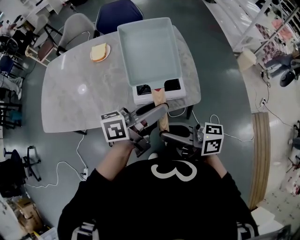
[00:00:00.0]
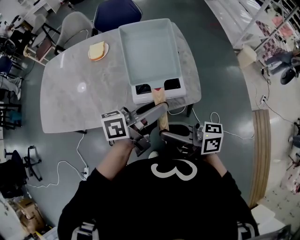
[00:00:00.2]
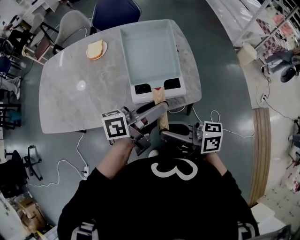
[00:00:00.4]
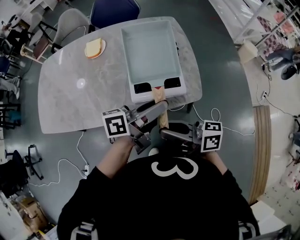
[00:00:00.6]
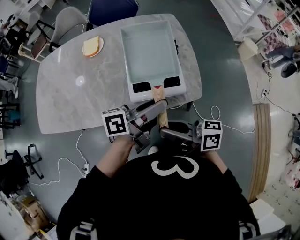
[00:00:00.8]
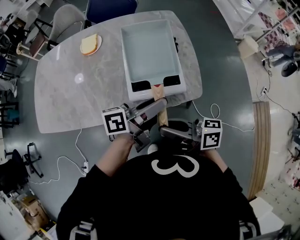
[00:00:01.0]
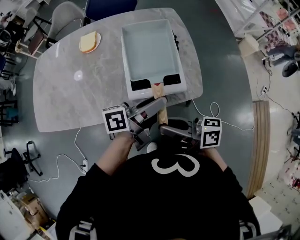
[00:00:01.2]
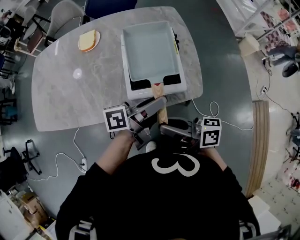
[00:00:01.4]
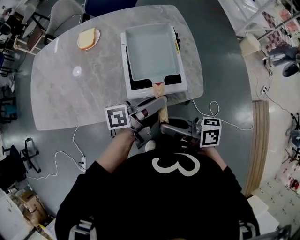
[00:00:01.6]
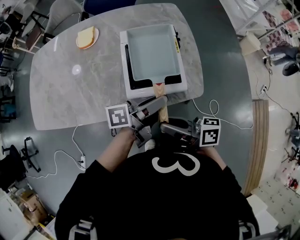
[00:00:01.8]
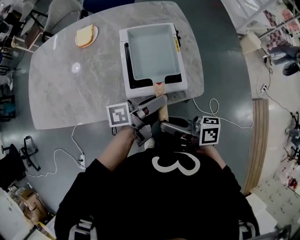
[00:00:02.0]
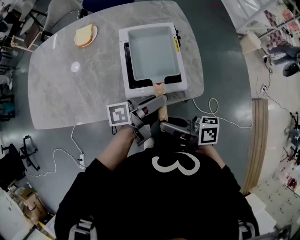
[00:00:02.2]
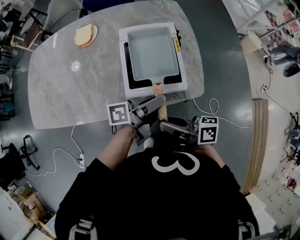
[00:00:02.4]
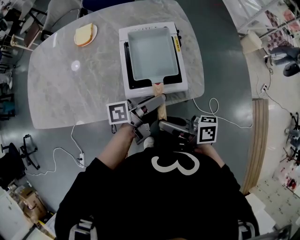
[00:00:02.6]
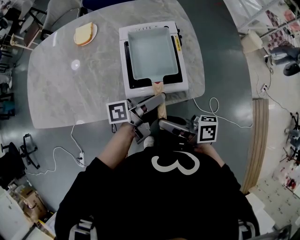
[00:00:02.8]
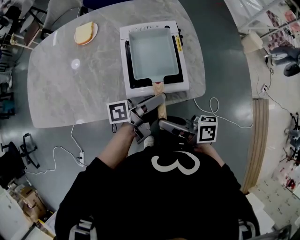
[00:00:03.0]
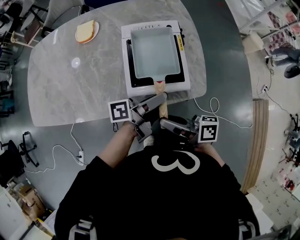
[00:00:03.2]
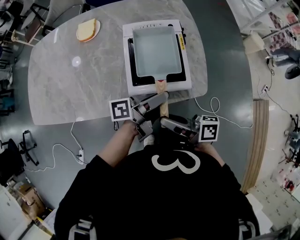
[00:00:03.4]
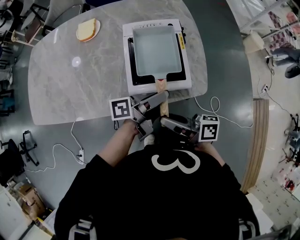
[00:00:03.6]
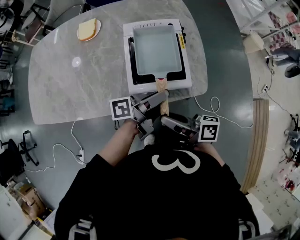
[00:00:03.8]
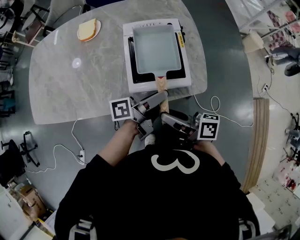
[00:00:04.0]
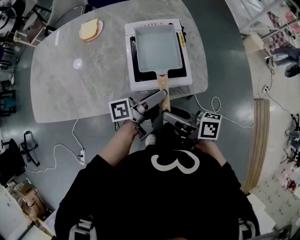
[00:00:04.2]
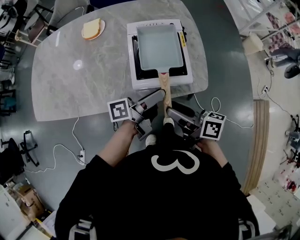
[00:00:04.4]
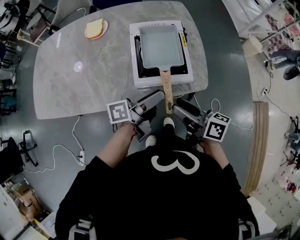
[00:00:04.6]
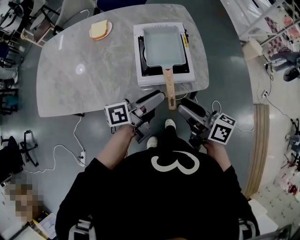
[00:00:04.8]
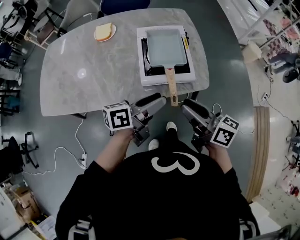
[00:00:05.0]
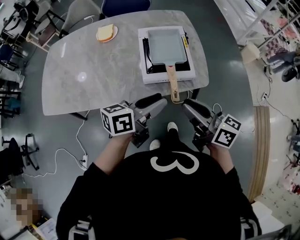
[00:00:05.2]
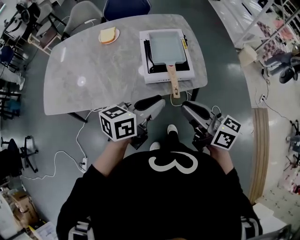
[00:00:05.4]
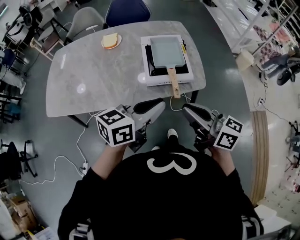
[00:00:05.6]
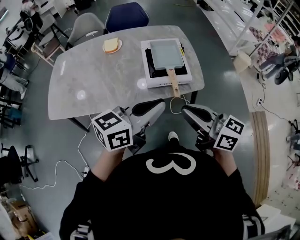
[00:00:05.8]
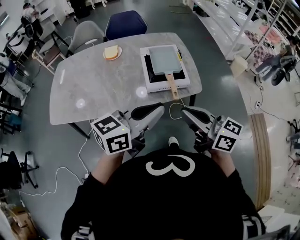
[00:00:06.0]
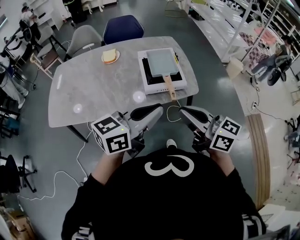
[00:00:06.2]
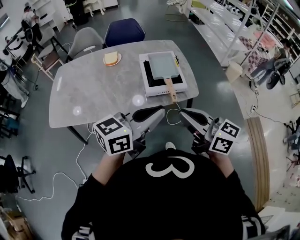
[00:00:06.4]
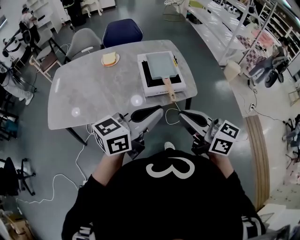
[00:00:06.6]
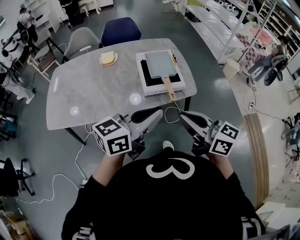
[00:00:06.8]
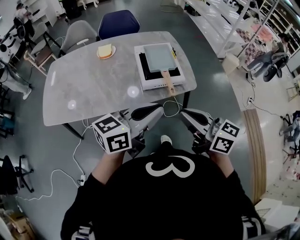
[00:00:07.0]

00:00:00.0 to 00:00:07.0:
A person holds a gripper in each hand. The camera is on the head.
00:00:00.0 to 00:00:01.4: Both grippers move downward, about 10 cm.
00:00:01.4 to 00:00:02.8: The left gripper goes some 5 cm downward.
00:00:02.8 to 00:00:04.2: The grippers stay close to where they were, moving slightly.
00:00:04.2 to 00:00:05.6: The left gripper moves backward, upward and to the left, roughly 20 cm, twists about 50 degrees clockwise, seen from behind, and closes up; the right gripper is displaced upward and backward by about 20 cm, changes its angle by approximately 30 degrees, and closes up.
00:00:05.6 to 00:00:07.0: Both grippers travel together backward, some 5 cm.

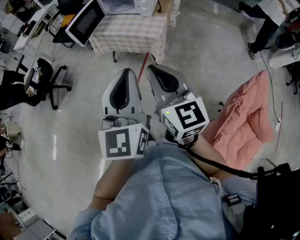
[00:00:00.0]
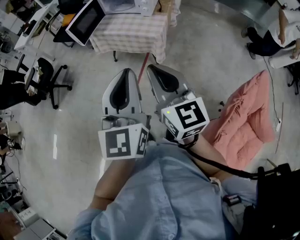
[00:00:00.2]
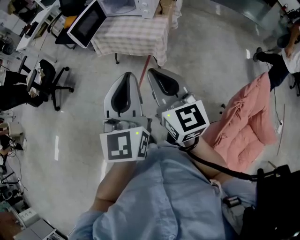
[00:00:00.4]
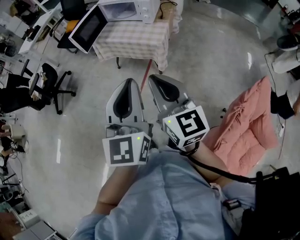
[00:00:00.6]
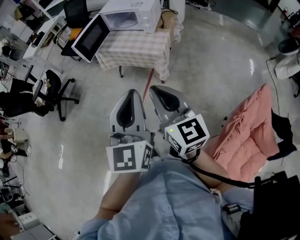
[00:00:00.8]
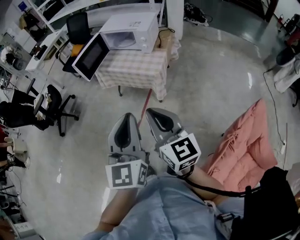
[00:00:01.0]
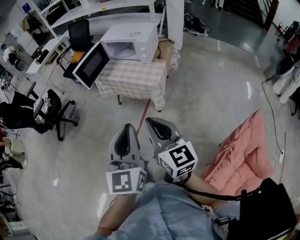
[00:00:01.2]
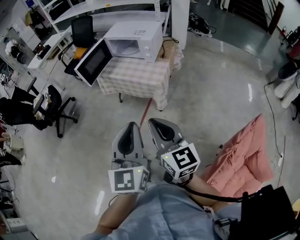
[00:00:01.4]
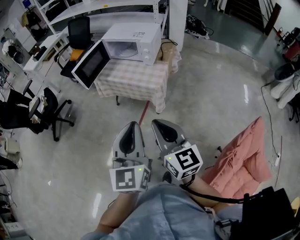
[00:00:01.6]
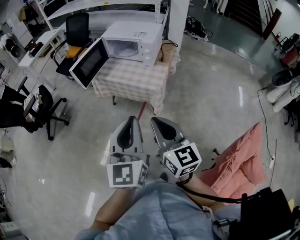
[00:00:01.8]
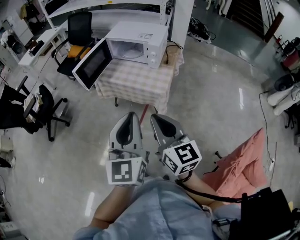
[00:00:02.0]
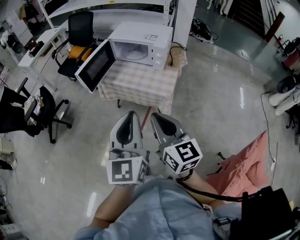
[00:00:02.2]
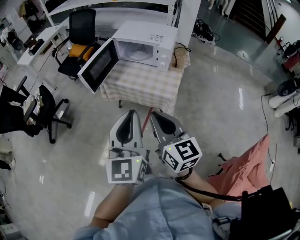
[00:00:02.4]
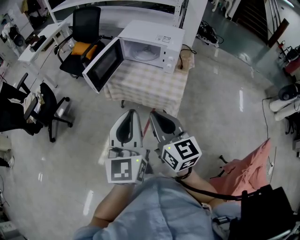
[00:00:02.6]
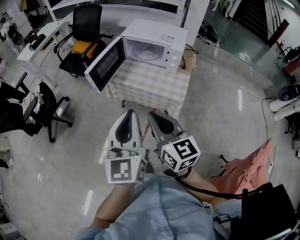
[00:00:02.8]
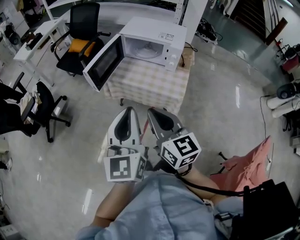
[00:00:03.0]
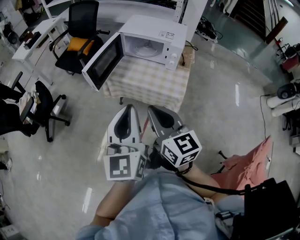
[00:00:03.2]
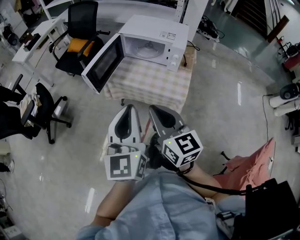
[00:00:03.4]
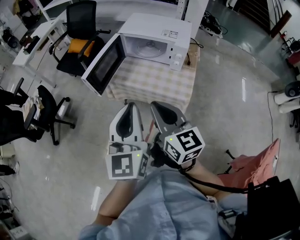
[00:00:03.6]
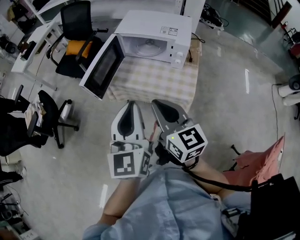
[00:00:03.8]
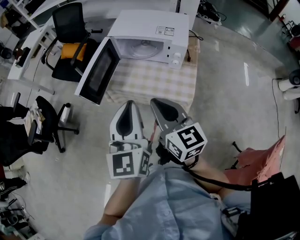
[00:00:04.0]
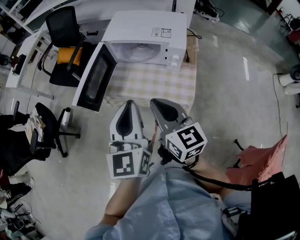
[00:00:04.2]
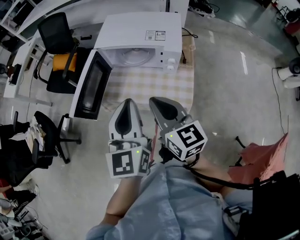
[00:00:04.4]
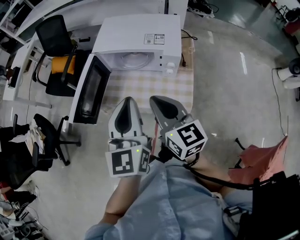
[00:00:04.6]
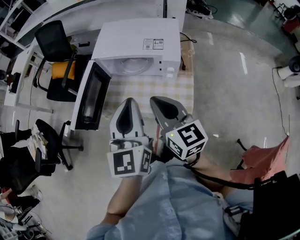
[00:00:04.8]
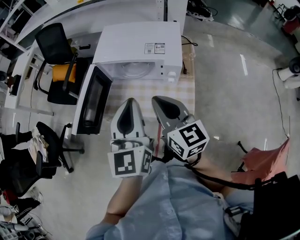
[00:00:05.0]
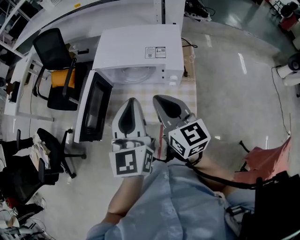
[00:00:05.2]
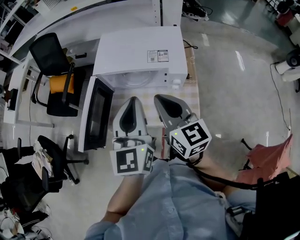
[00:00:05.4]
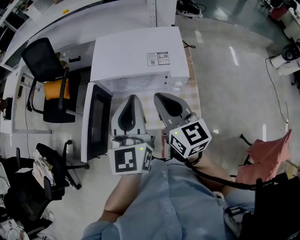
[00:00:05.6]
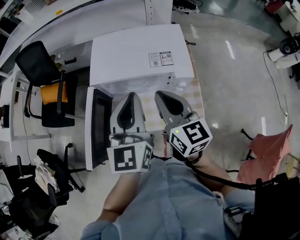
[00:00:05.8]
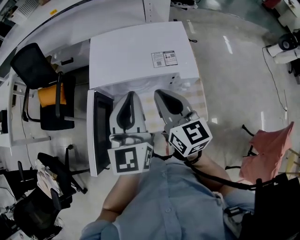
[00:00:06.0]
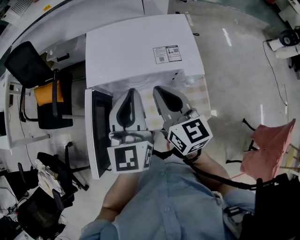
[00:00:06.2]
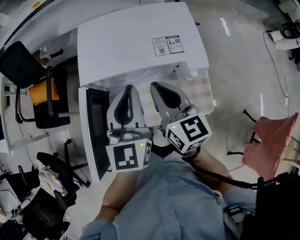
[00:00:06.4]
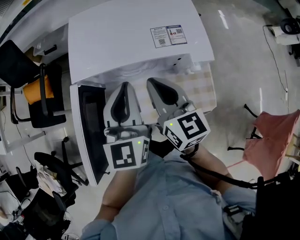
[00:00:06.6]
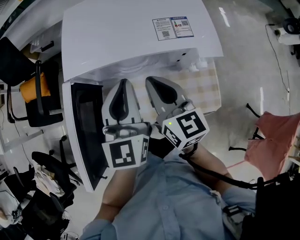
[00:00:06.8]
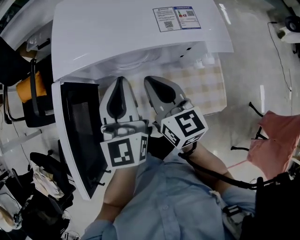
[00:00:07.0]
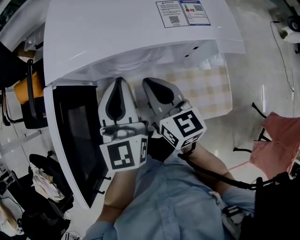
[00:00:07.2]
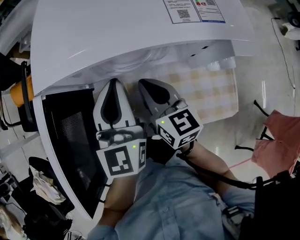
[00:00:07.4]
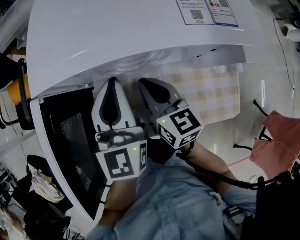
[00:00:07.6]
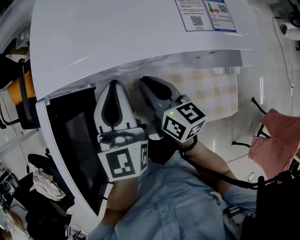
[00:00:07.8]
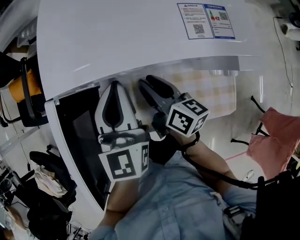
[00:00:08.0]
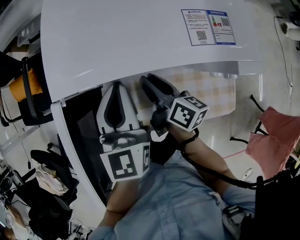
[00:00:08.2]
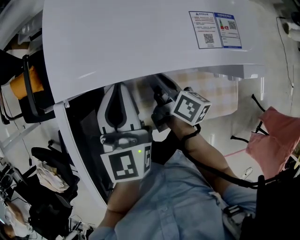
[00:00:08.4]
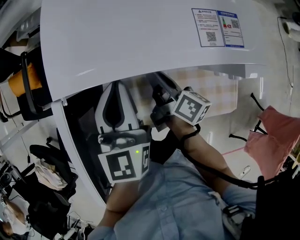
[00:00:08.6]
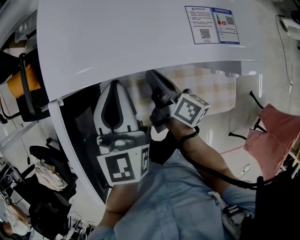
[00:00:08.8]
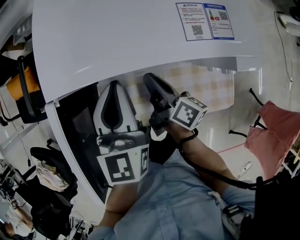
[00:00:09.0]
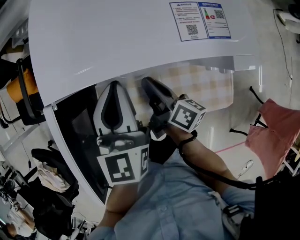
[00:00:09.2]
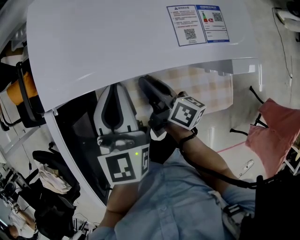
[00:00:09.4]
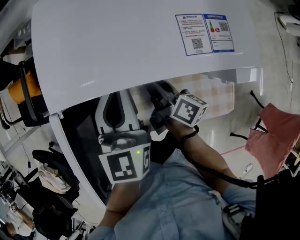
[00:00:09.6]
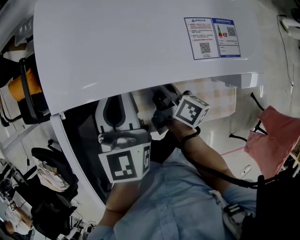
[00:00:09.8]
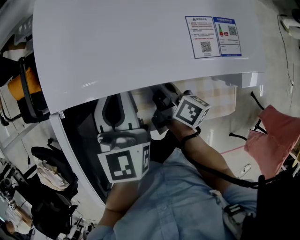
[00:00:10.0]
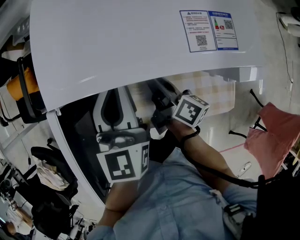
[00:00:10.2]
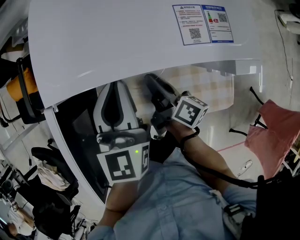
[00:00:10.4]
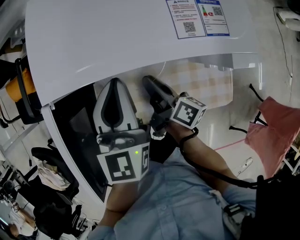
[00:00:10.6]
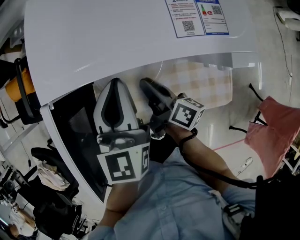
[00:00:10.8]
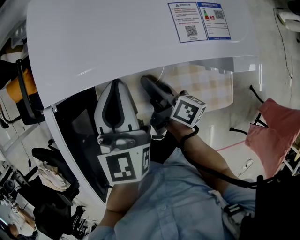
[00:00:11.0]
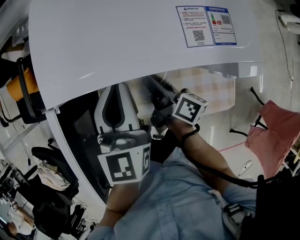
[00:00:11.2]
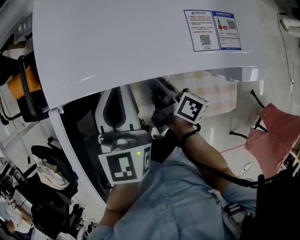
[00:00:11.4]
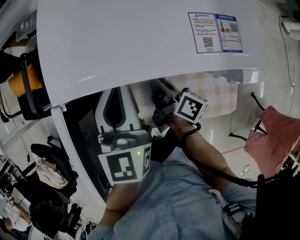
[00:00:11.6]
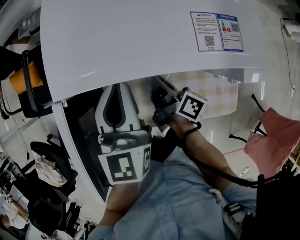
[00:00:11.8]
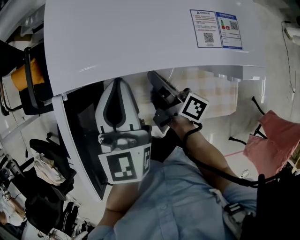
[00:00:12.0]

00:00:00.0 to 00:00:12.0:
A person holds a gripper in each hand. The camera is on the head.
00:00:00.0 to 00:00:01.6: The right gripper shifts by some 5 cm; the left gripper is displaced forward by roughly 5 cm.
00:00:01.6 to 00:00:03.0: The grippers both shift forward and to the left by about 25 cm.
00:00:03.0 to 00:00:04.4: The two grippers go roughly 20 cm forward.
00:00:04.4 to 00:00:06.0: The grippers both shift forward by some 20 cm.
00:00:06.0 to 00:00:07.6: Both grippers move downward, approximately 25 cm.
00:00:07.6 to 00:00:09.0: The right gripper rolls clockwise, seen from behind, by roughly 40 degrees.
00:00:09.0 to 00:00:12.0: The grippers move only a little.

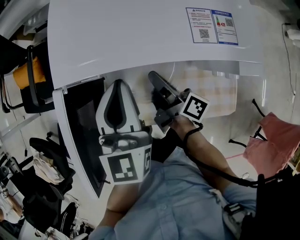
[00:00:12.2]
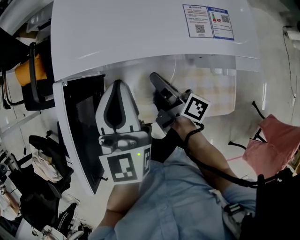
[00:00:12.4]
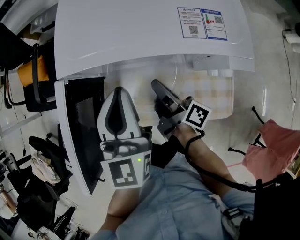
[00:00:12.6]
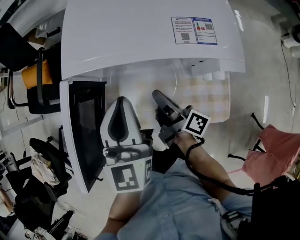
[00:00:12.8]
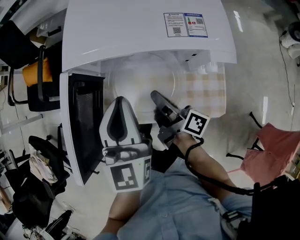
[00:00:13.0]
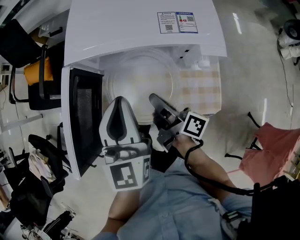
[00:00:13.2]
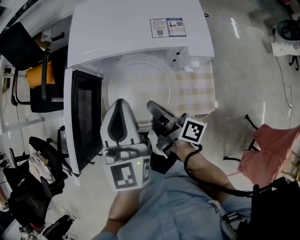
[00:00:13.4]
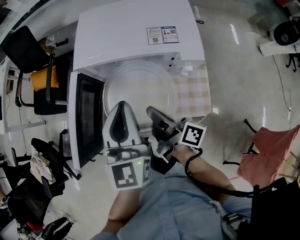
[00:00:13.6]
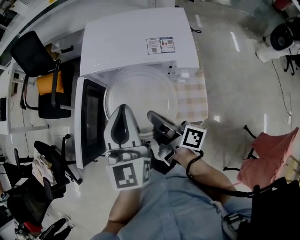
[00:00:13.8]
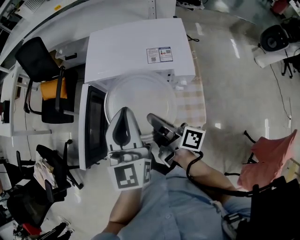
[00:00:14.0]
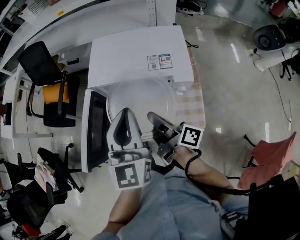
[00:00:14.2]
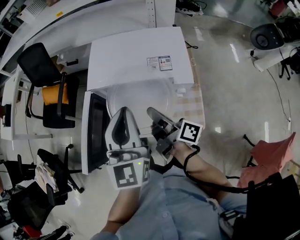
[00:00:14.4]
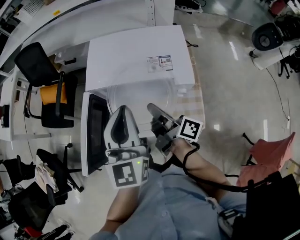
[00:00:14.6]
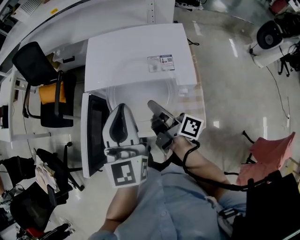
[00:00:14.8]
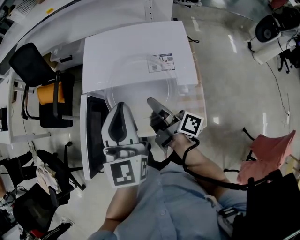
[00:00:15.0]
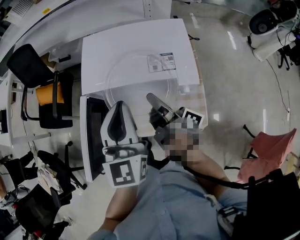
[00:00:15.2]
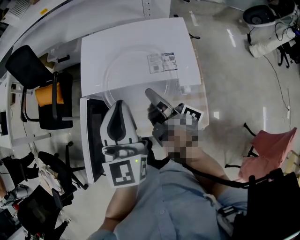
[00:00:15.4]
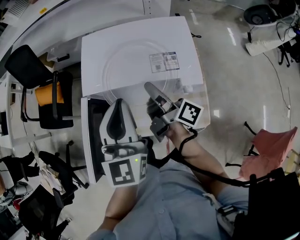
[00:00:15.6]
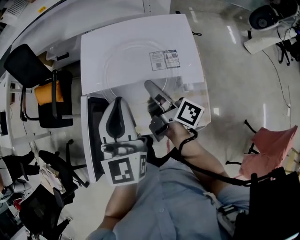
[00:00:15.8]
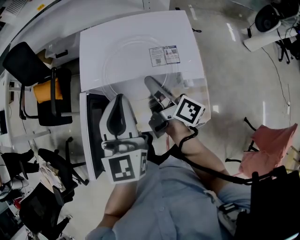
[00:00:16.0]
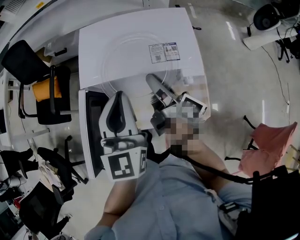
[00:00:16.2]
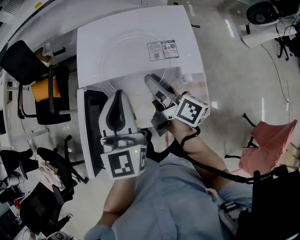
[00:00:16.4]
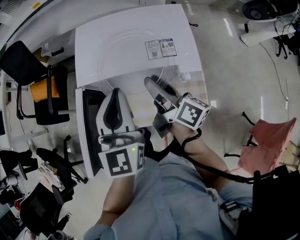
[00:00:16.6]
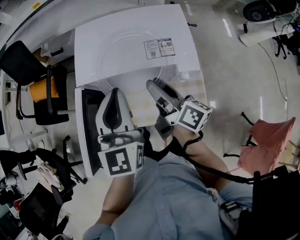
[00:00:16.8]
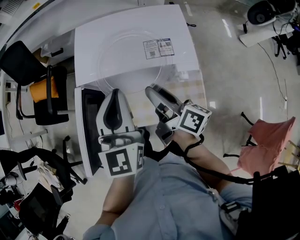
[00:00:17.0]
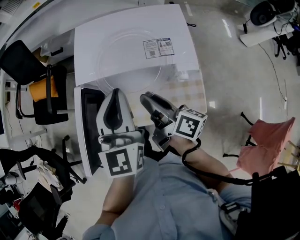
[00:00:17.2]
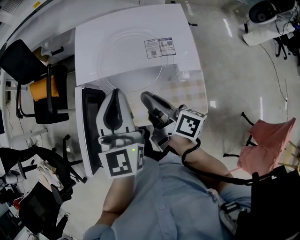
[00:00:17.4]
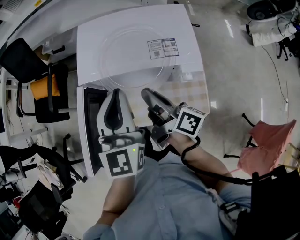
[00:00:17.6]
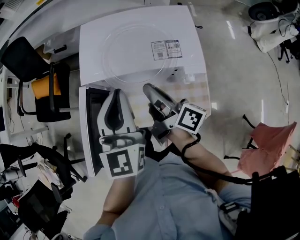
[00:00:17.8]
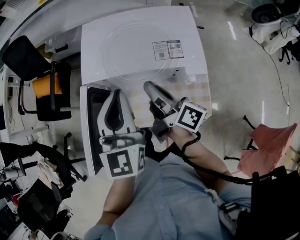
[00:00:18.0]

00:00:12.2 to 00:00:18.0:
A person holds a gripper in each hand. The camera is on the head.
00:00:12.2 to 00:00:13.6: The grippers both shift backward and upward by some 20 cm.
00:00:13.6 to 00:00:15.0: The left gripper goes approximately 10 cm upward and forward; the right gripper goes some 10 cm forward.
00:00:15.0 to 00:00:16.6: The right gripper turns by approximately 20 degrees, and opens its fingers.
00:00:16.6 to 00:00:18.0: The grippers move only a little.
